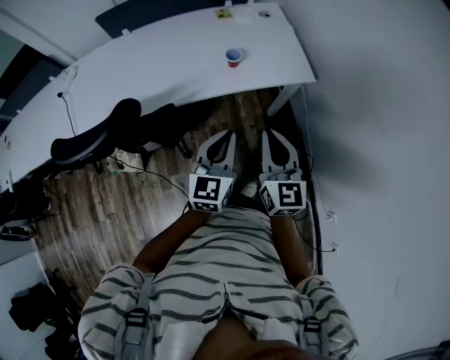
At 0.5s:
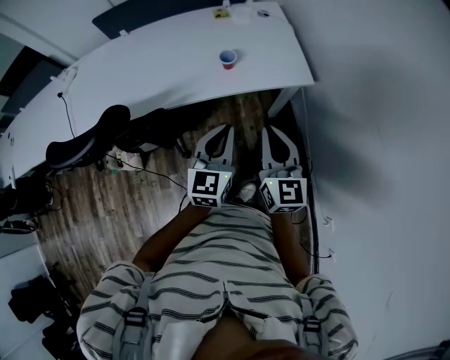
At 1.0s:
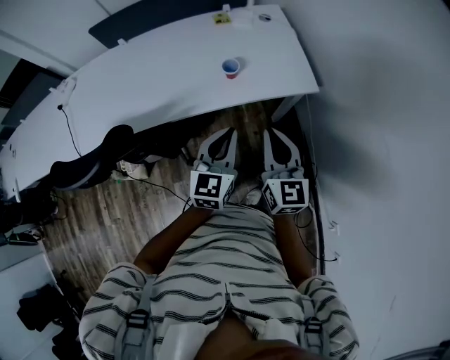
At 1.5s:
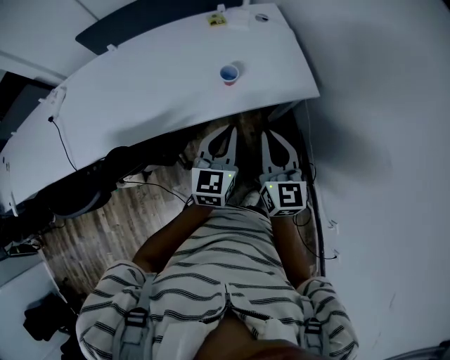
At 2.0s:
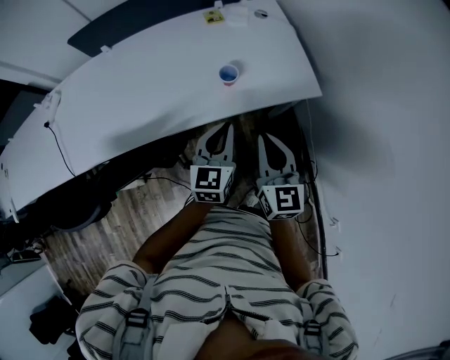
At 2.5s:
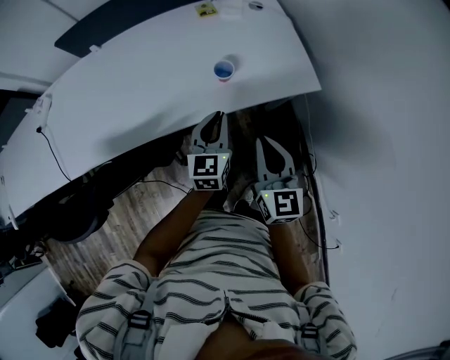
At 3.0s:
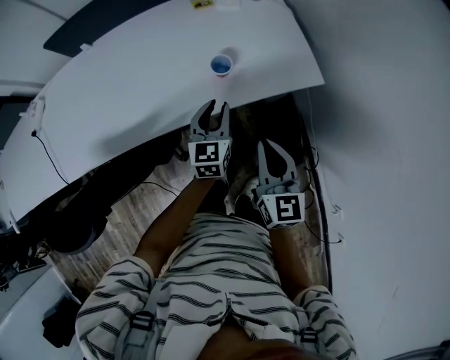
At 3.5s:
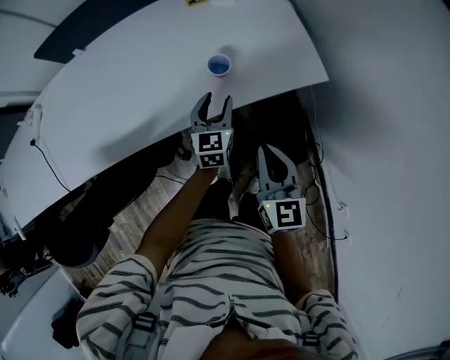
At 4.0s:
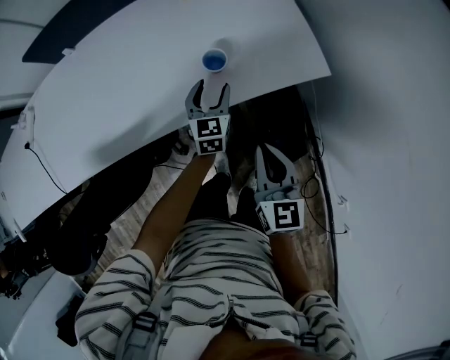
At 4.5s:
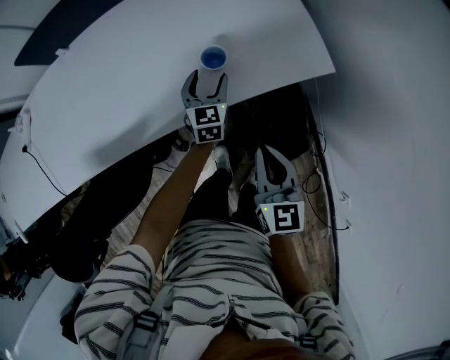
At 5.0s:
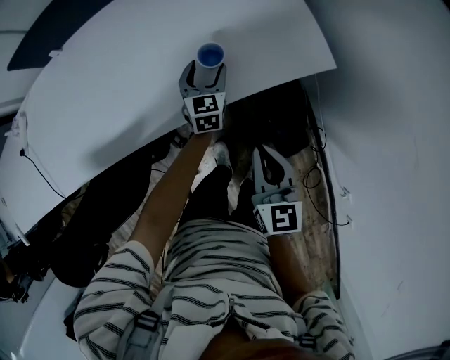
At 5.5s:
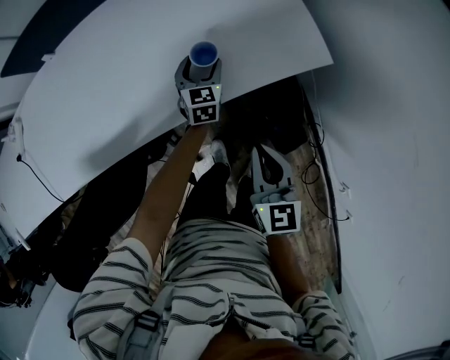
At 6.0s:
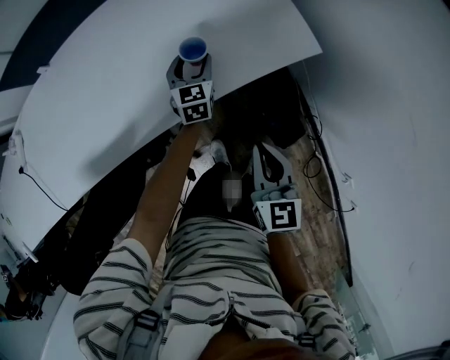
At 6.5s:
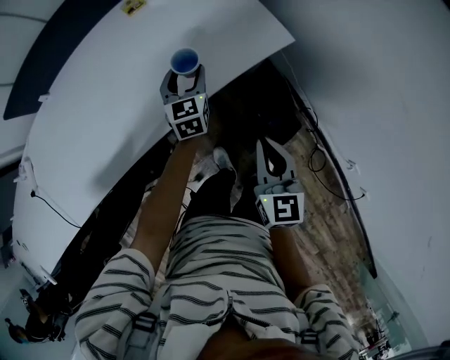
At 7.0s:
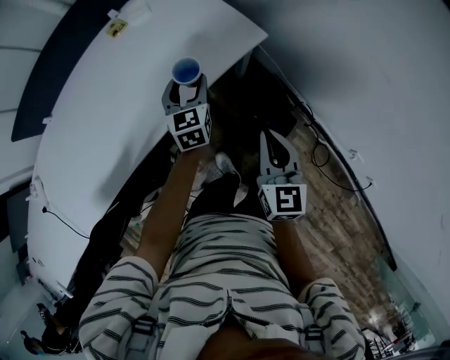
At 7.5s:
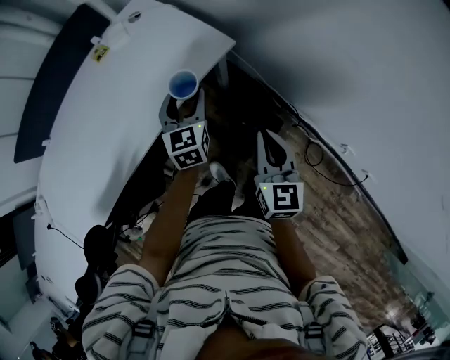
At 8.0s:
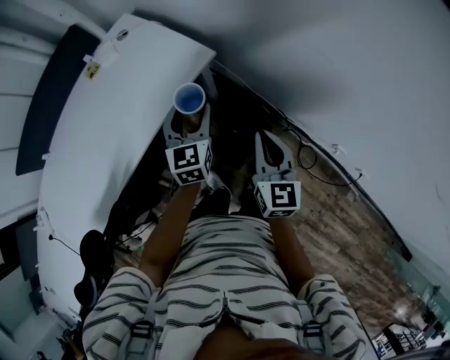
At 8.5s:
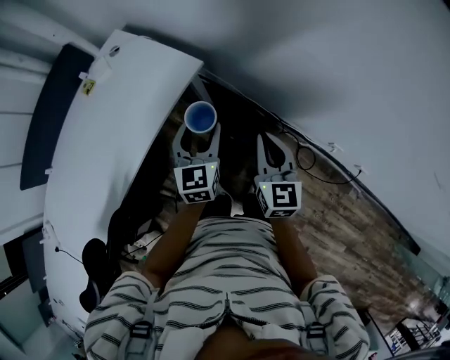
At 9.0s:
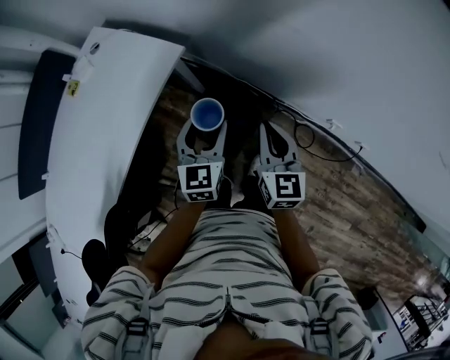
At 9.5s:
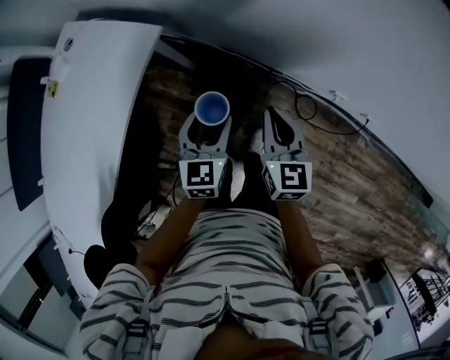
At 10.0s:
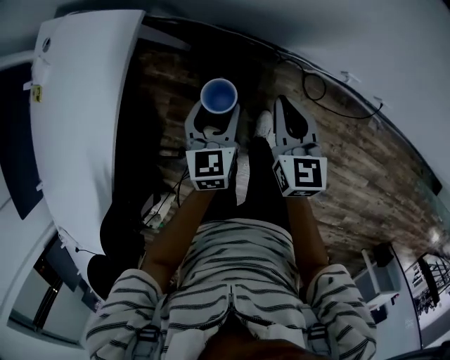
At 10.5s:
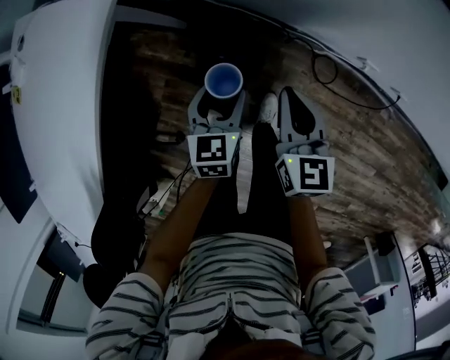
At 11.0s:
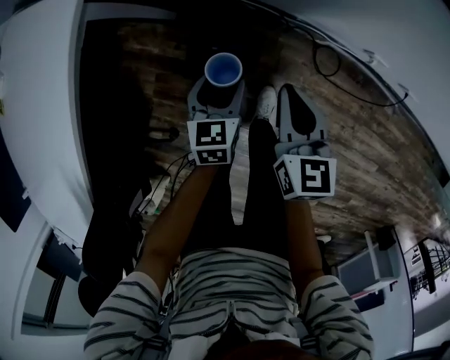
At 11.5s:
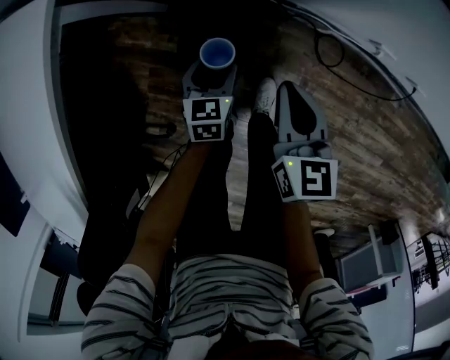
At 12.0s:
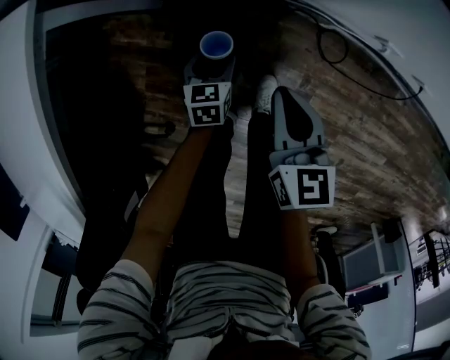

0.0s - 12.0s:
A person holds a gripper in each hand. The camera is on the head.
0.0s - 2.0s: Both grippers travel together forward, about 15 cm.
2.0s - 4.0s: The right gripper goes roughly 10 cm downward; the left gripper is displaced downward and forward by some 20 cm, and opens its fingers.
4.0s - 6.0s: The left gripper is displaced forward by about 5 cm.
6.0s - 8.0s: The right gripper moves about 25 cm, and swivels approximately 30 degrees, while the left gripper shifts by some 35 cm, and rotates roughly 30 degrees.
8.0s - 10.0s: The left gripper is displaced to the right and downward by approximately 25 cm, and rotates some 30 degrees. Meanwhile the right gripper is displaced downward and to the right by roughly 20 cm, and rotates some 20 degrees.
10.0s - 12.0s: The right gripper heads downward, covering about 20 cm, while the left gripper heads downward, covering about 35 cm.

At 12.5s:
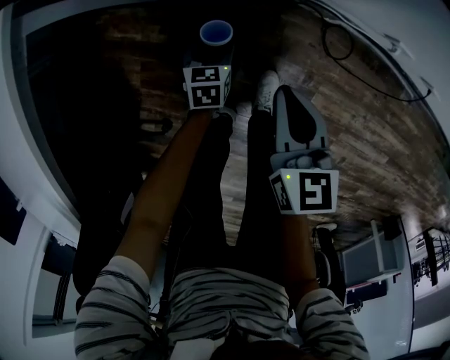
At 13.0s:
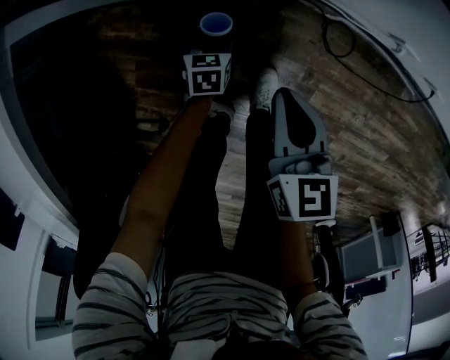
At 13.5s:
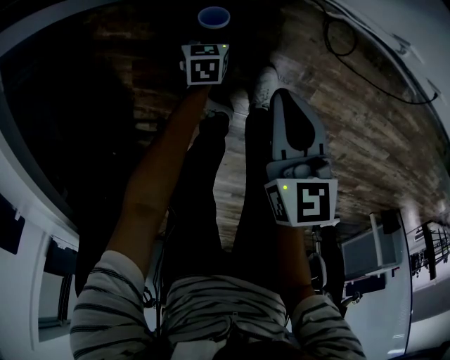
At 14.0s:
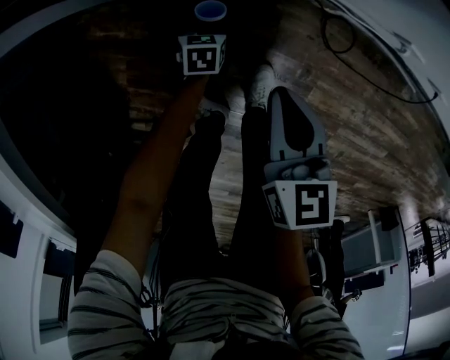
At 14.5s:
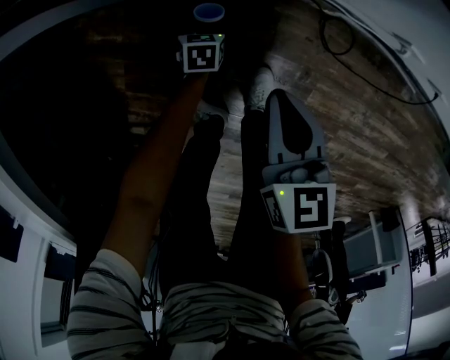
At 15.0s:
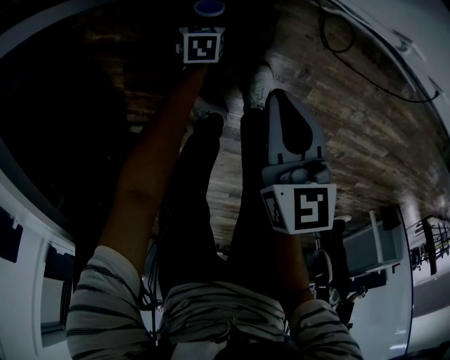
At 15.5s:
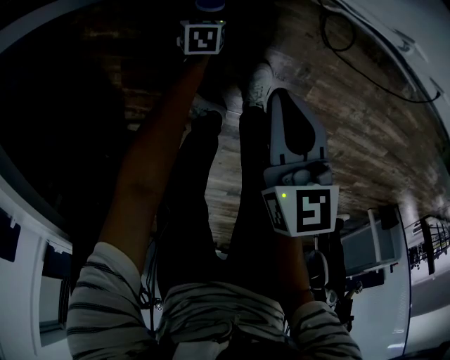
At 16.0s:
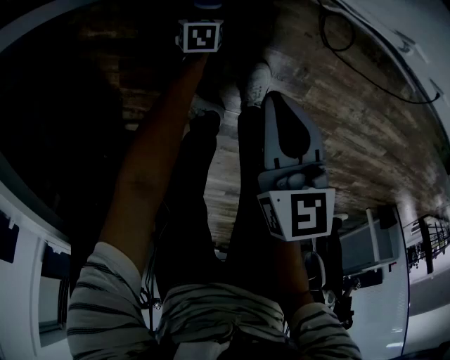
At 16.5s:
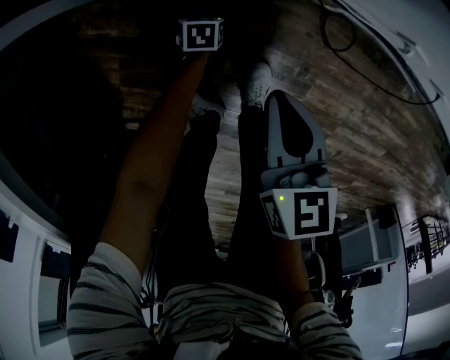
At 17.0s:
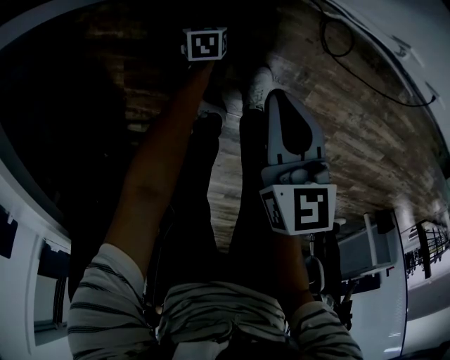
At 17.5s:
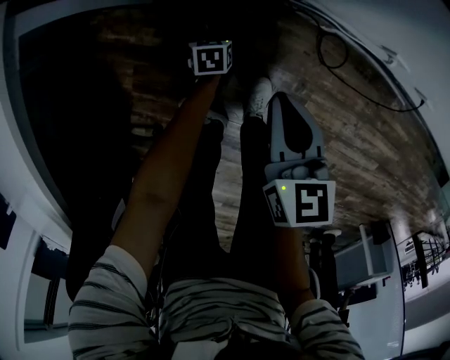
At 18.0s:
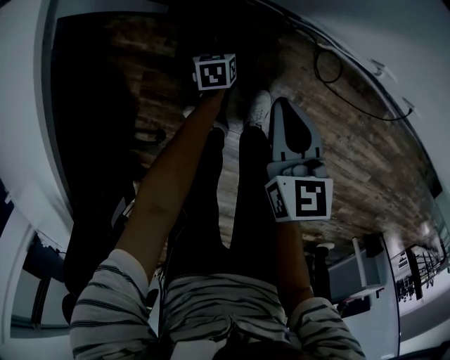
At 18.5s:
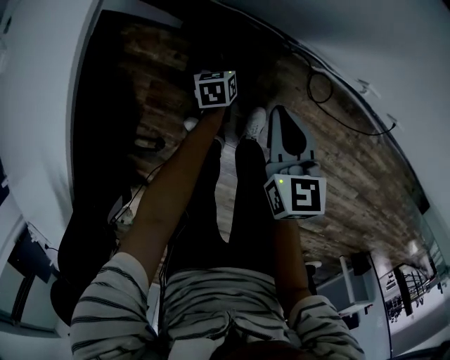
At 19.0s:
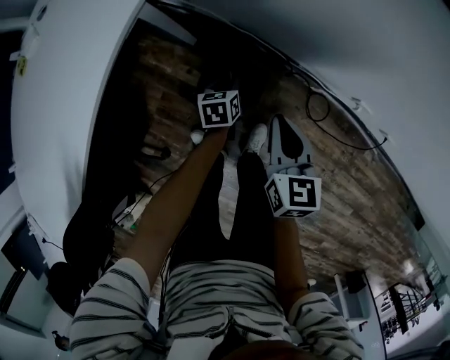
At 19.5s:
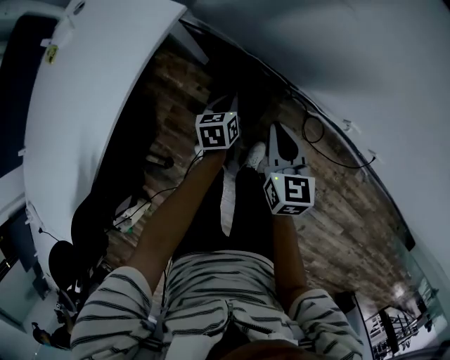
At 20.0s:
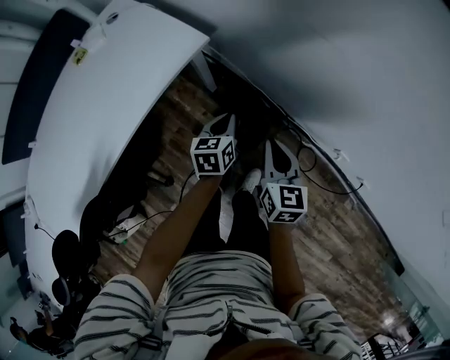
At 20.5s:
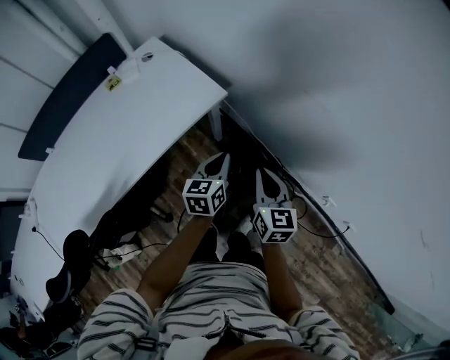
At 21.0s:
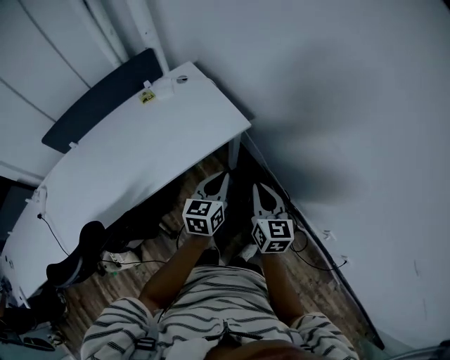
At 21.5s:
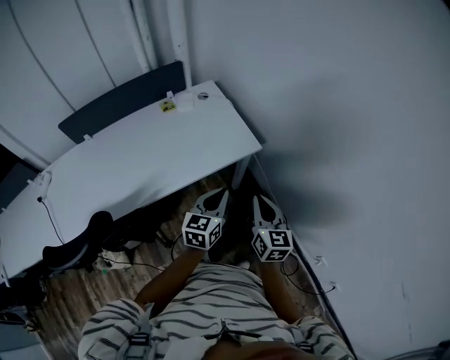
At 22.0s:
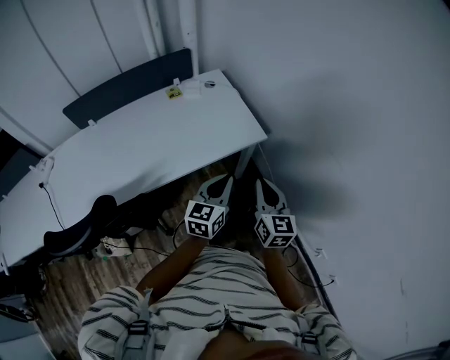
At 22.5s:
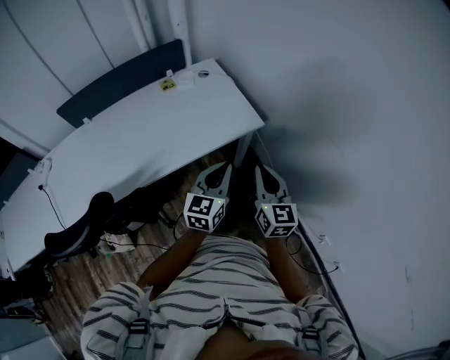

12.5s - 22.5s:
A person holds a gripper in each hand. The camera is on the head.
12.5s - 14.5s: The left gripper moves downward, about 15 cm. The right gripper shifts some 5 cm downward.
14.5s - 16.5s: There are only small adjustments of the grippers.
16.5s - 18.5s: The left gripper moves upward, about 25 cm, rotates some 20 degrees, and closes its fingers, while the right gripper shifts some 15 cm upward.
18.5s - 20.5s: The right gripper is displaced upward by some 25 cm, and rotates some 20 degrees. The left gripper is displaced upward by about 50 cm, tips its fingers upward by roughly 30 degrees, and closes its fingers.
20.5s - 22.5s: The right gripper moves to the left and upward, roughly 15 cm, and turns by some 20 degrees. The left gripper moves upward, to the left and backward, roughly 20 cm, and swivels some 20 degrees.

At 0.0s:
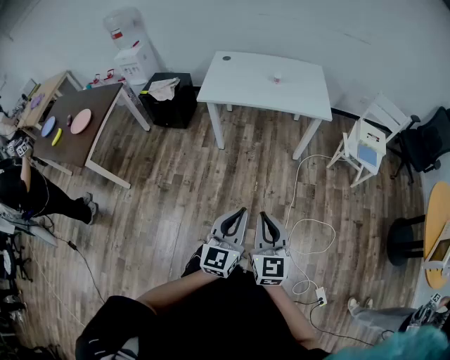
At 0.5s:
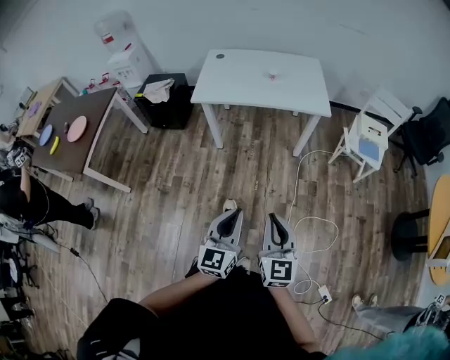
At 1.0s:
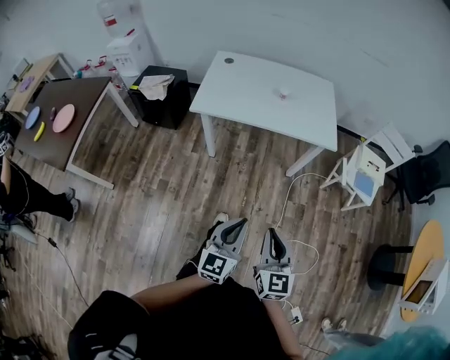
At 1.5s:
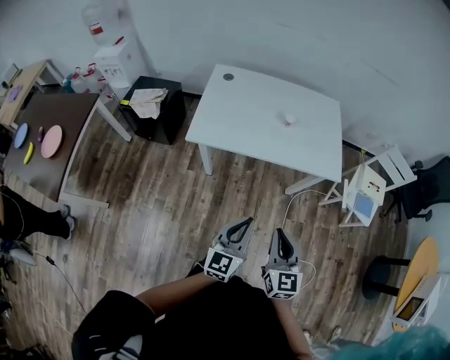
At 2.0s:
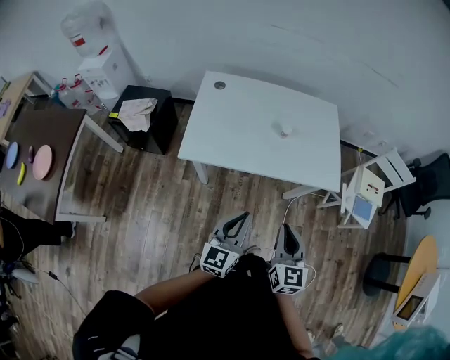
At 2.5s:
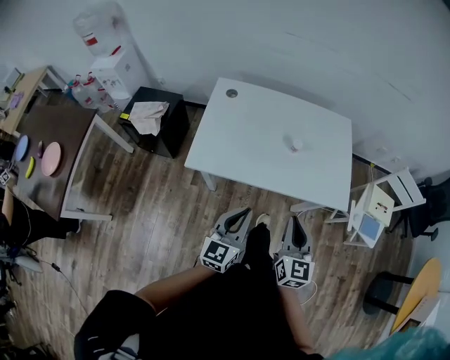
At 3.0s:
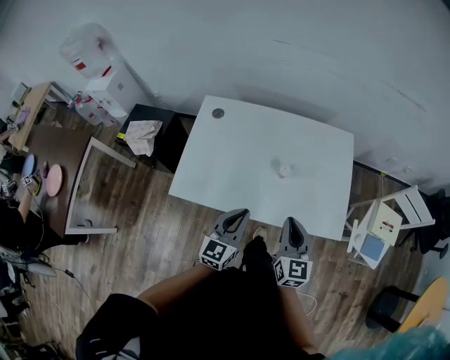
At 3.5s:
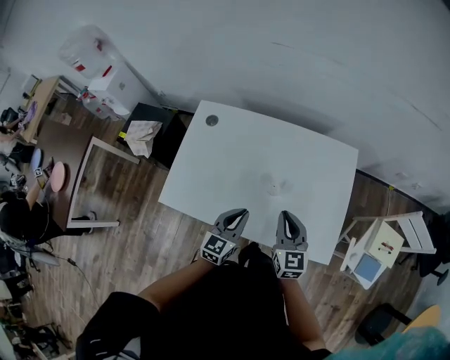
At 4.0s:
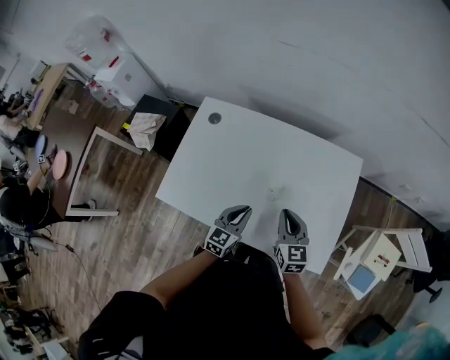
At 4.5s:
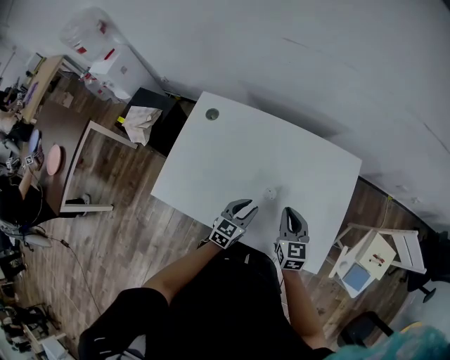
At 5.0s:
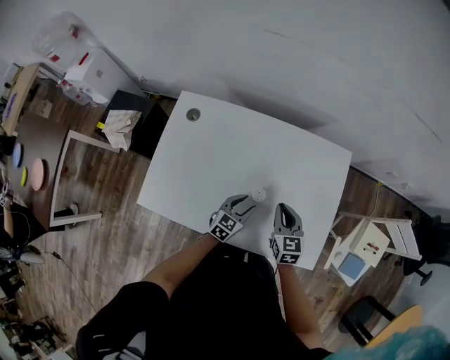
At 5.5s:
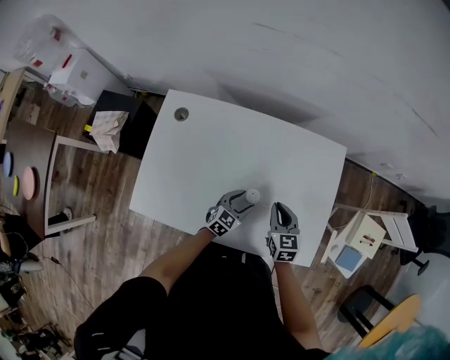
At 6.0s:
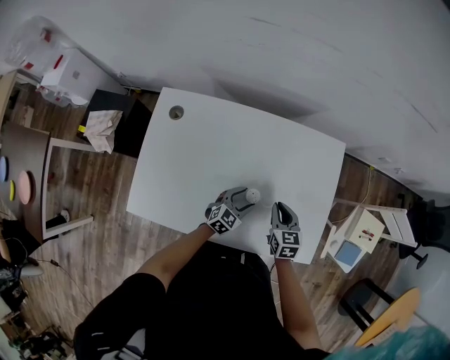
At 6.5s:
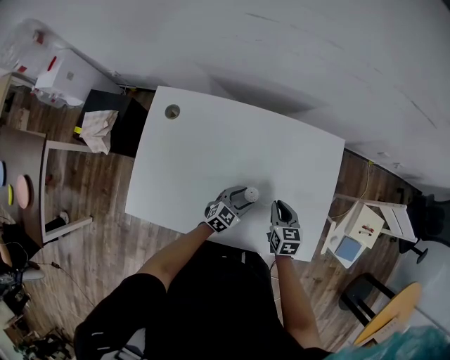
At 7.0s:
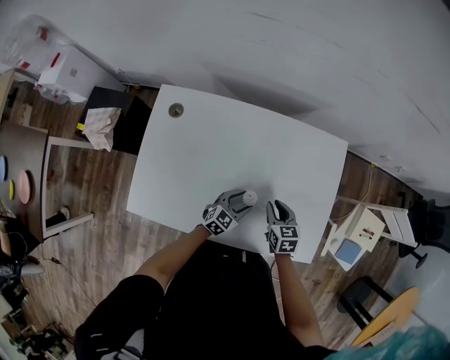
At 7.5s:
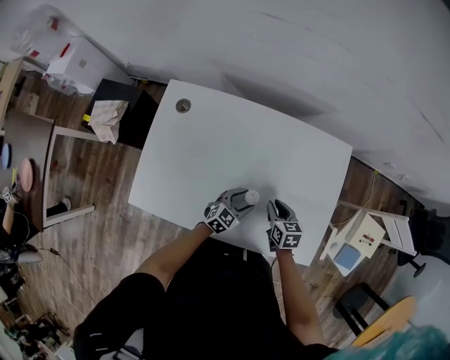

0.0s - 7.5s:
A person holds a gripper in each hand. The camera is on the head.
0.0s - 2.0s: The pair of grippers is taken forward, about 50 cm.
2.0s - 4.0s: The right gripper goes some 40 cm forward, and turns by some 20 degrees; the left gripper shifts some 40 cm forward and downward.
4.0s - 5.5s: The right gripper moves downward and forward, some 10 cm, while the left gripper shifts some 15 cm downward and forward, turns by about 20 degrees, and opens up.
5.5s - 7.5s: The right gripper heads downward, covering roughly 10 cm.
